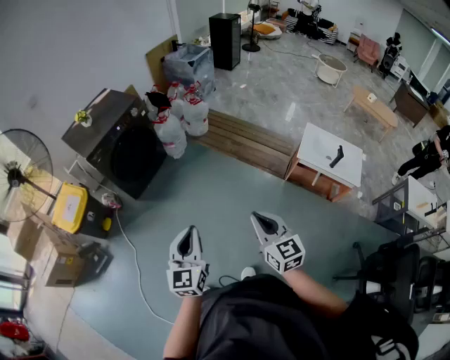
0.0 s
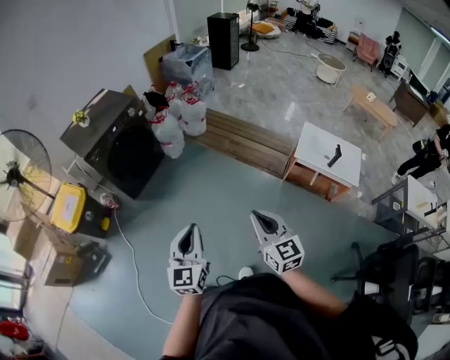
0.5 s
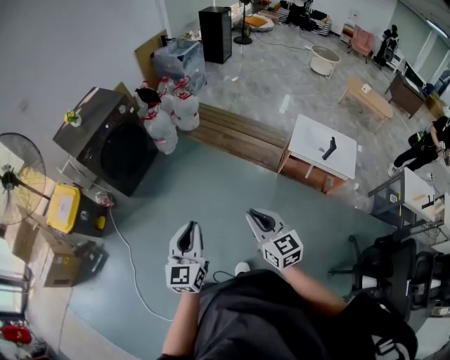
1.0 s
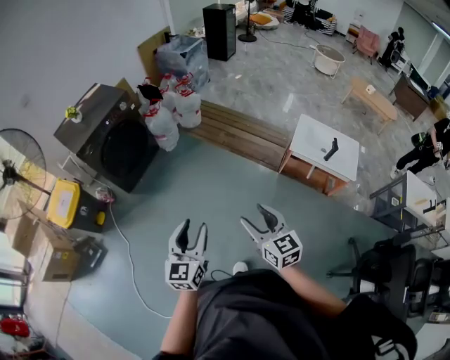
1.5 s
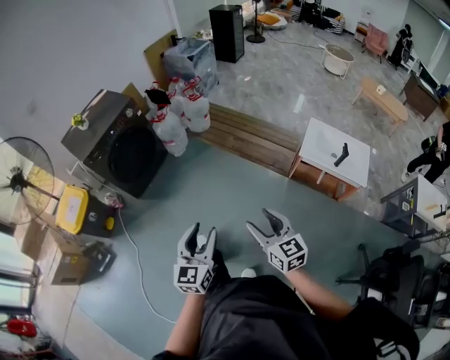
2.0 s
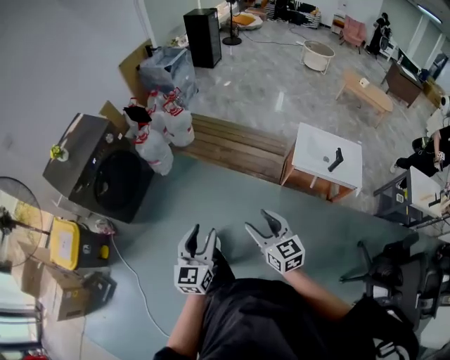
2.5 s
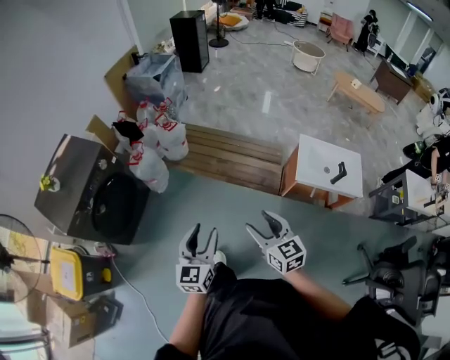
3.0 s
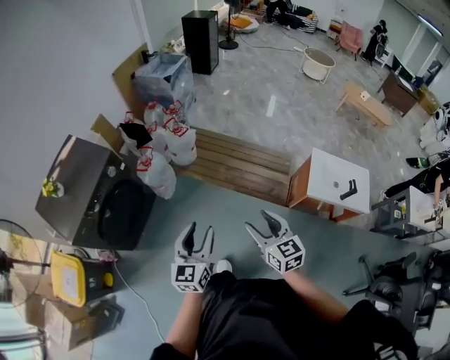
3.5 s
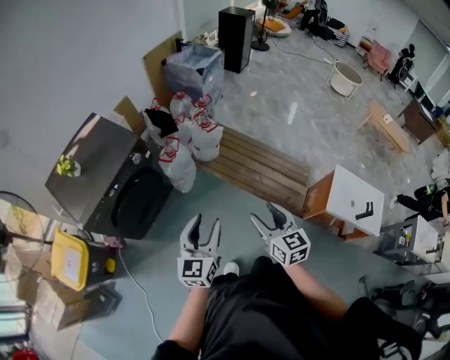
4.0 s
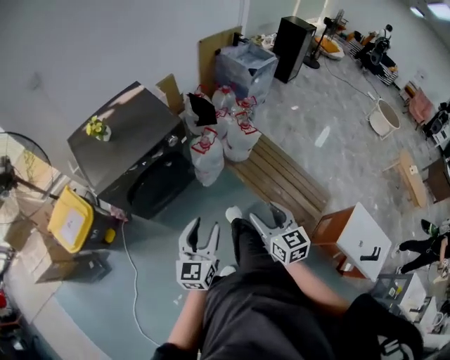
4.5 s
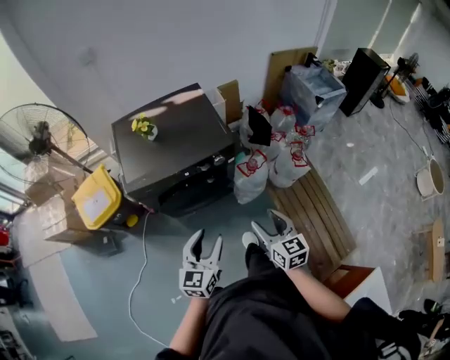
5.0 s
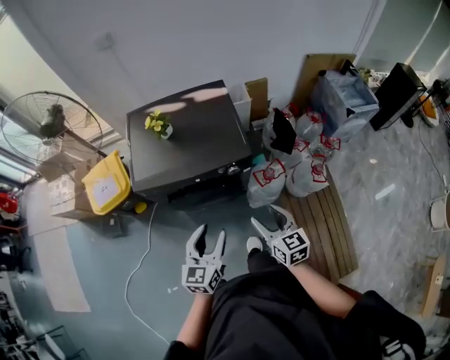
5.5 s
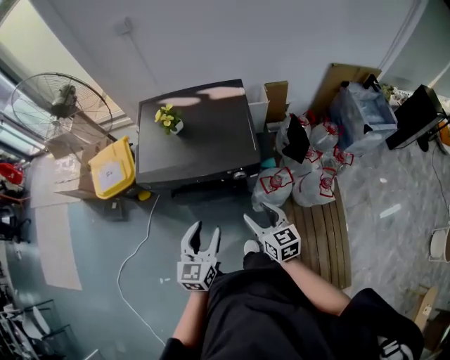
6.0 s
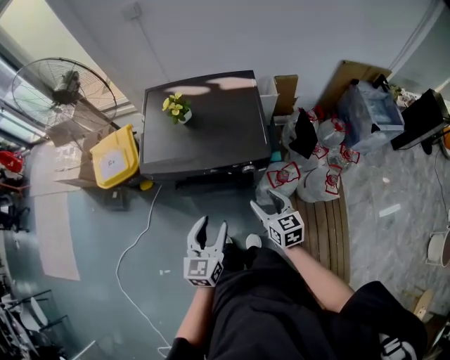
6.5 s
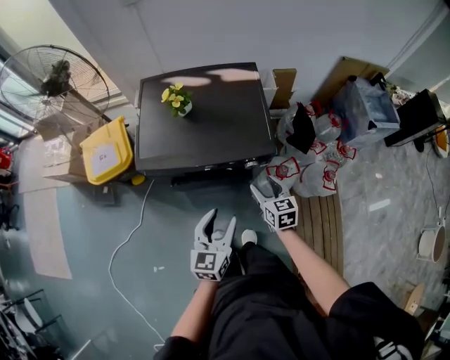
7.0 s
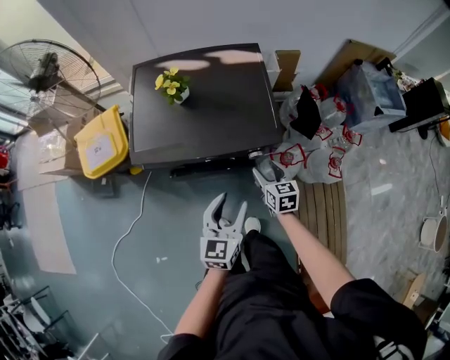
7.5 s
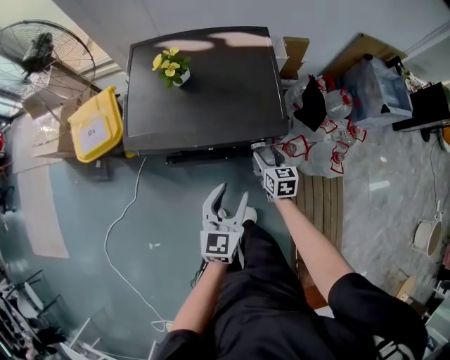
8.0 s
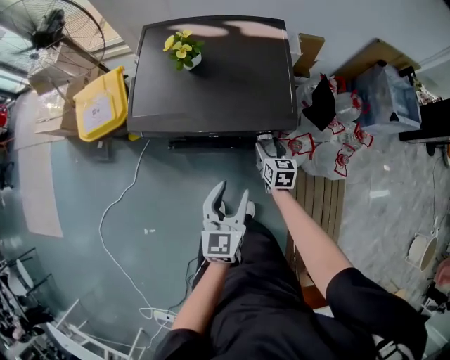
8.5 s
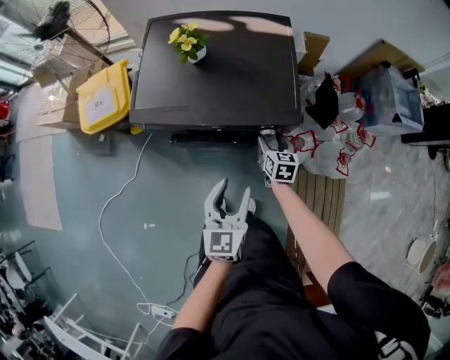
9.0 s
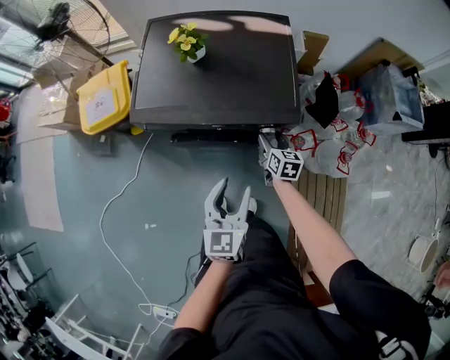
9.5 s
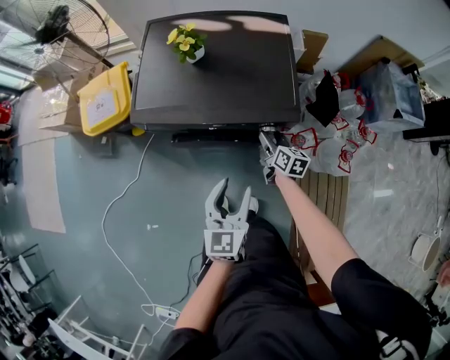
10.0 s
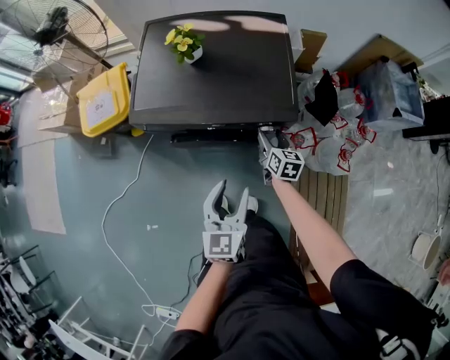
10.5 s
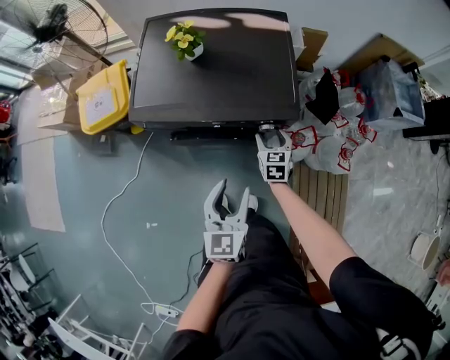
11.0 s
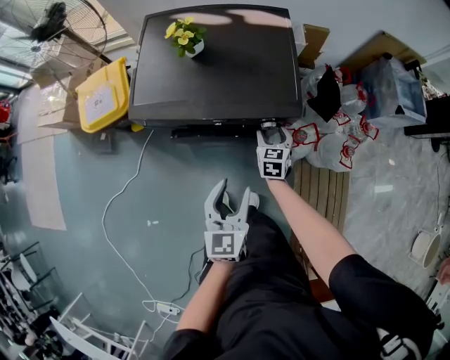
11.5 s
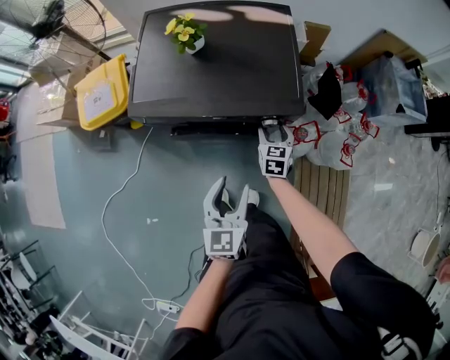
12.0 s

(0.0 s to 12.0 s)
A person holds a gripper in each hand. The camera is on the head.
0.0 s - 2.0 s: Both grippers travel together to the right, approximately 10 cm. The left gripper opens; the right gripper opens its fingers.
2.0 s - 4.0 s: The two grippers travel together, forward and to the left, roughly 50 cm.
4.0 s - 6.0 s: The left gripper shifts by roughly 35 cm, and rotates some 60 degrees; the right gripper ends up approximately 50 cm from where it was, and turns by roughly 60 degrees.
6.0 s - 8.0 s: The left gripper shifts some 10 cm downward and forward; the right gripper goes approximately 25 cm downward and forward.
8.0 s - 10.0 s: The right gripper changes its angle by some 20 degrees.
10.0 s - 12.0 s: The right gripper changes its angle by roughly 30 degrees.

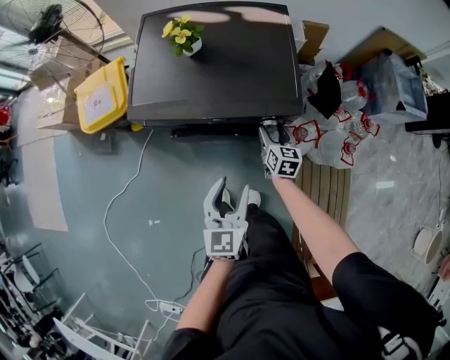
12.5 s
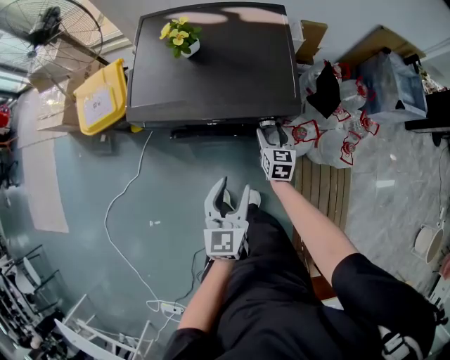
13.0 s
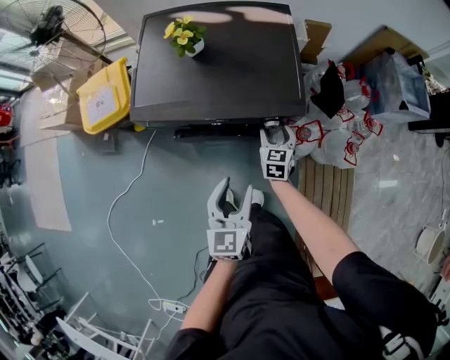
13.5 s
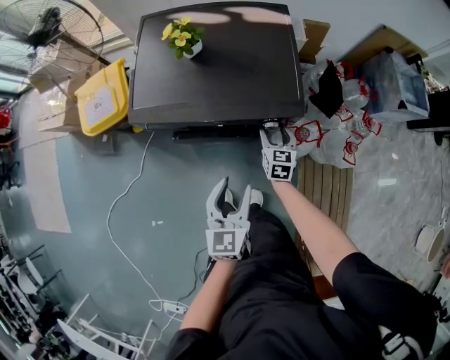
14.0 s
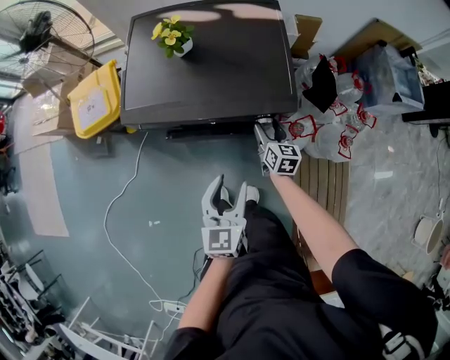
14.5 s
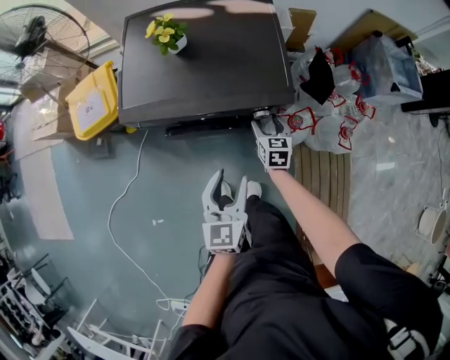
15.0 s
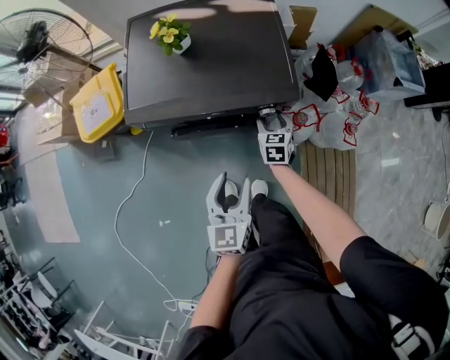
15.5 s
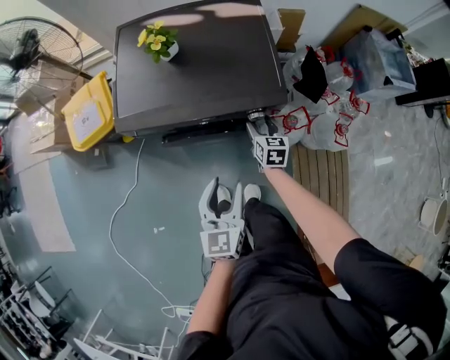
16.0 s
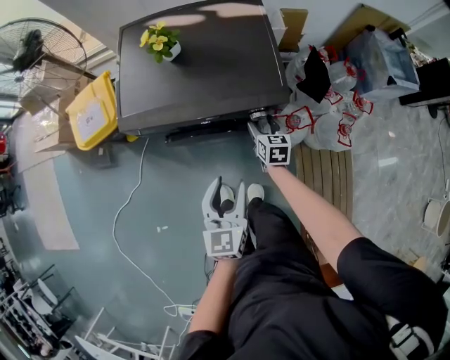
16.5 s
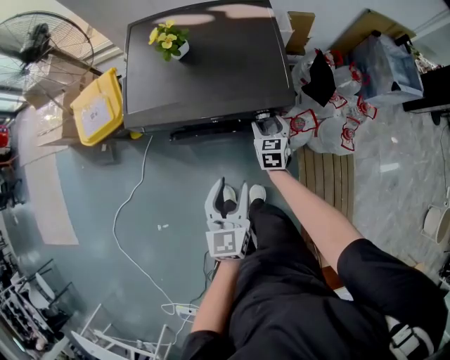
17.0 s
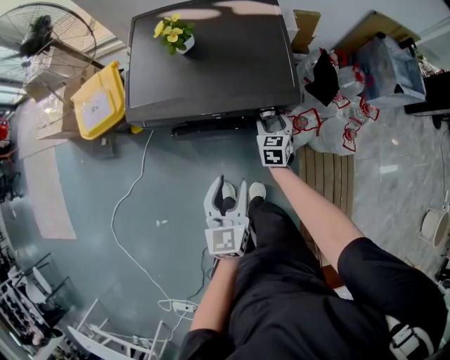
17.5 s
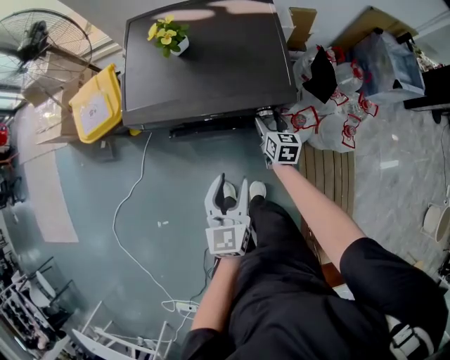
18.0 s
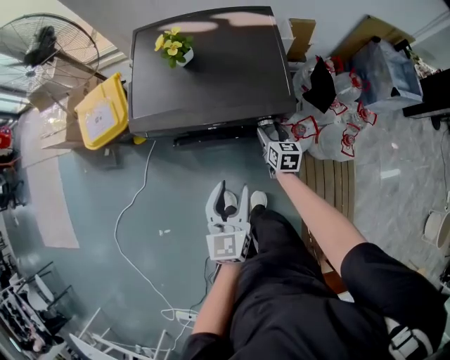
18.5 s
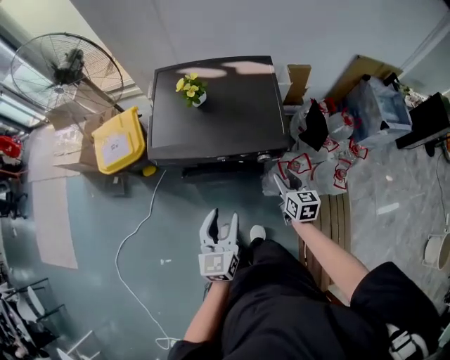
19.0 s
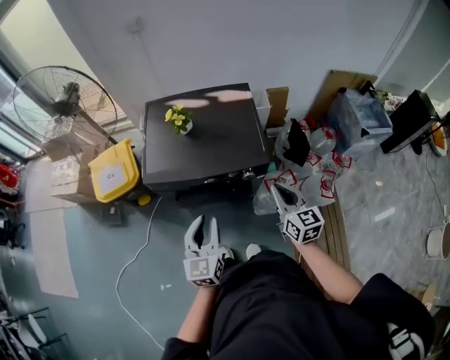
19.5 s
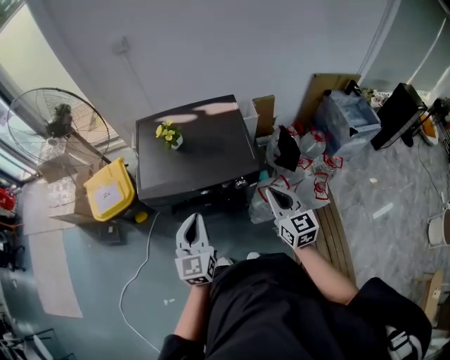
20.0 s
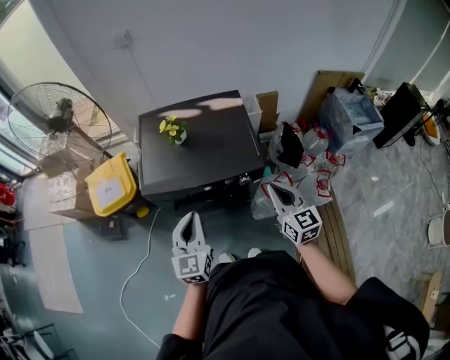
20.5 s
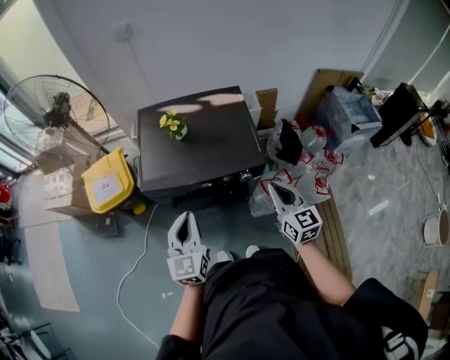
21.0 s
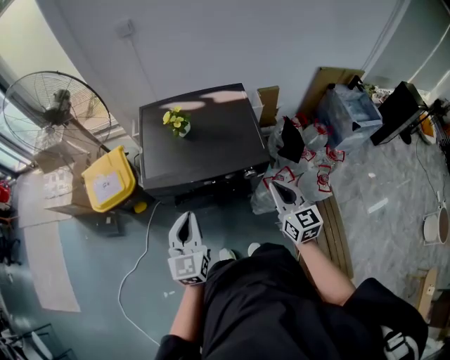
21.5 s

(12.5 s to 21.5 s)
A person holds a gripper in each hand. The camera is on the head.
14.5 s - 17.0 s: The right gripper turns by about 20 degrees.
17.0 s - 19.5 s: The left gripper shifts approximately 15 cm upward and to the left. Meanwhile the right gripper is displaced upward and backward by about 30 cm, swivels about 30 degrees, and closes up.
19.5 s - 21.5 s: The left gripper moves to the left, roughly 10 cm, and closes its fingers.

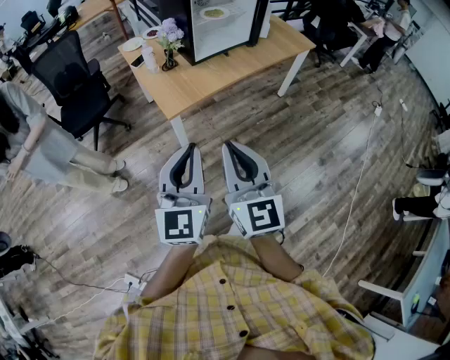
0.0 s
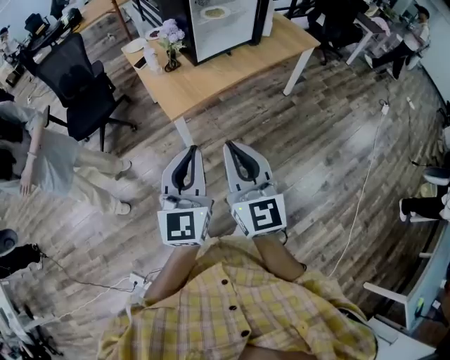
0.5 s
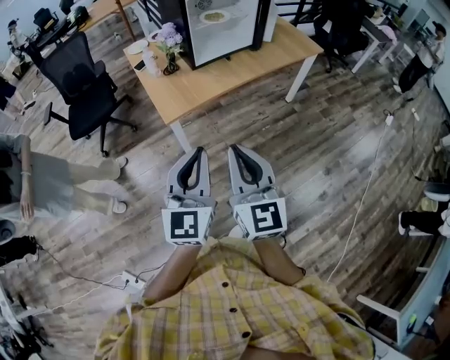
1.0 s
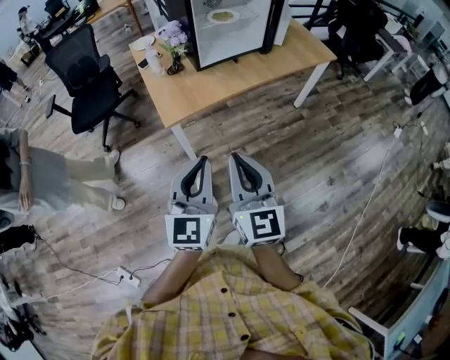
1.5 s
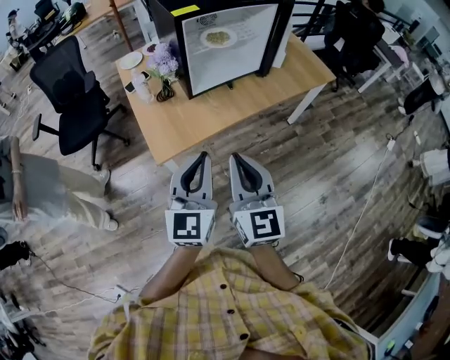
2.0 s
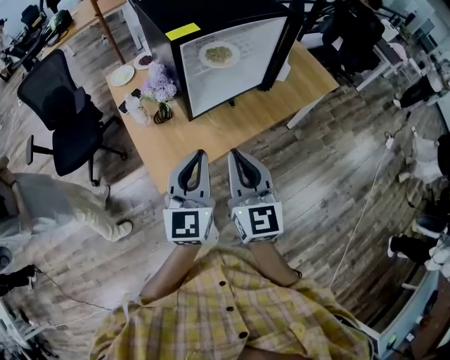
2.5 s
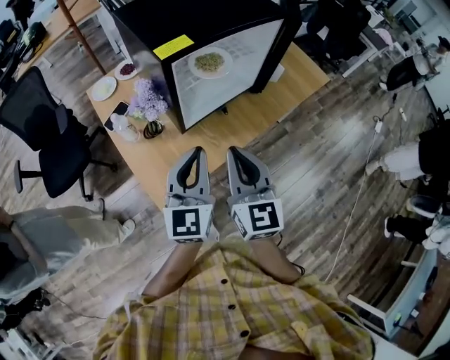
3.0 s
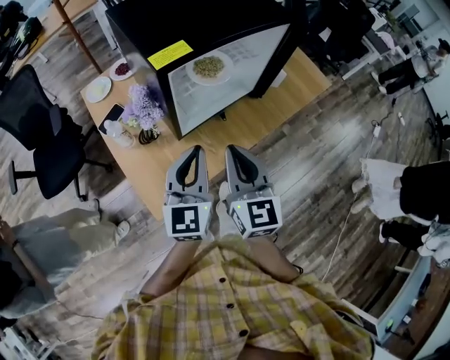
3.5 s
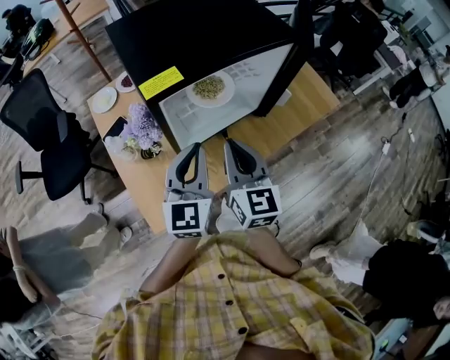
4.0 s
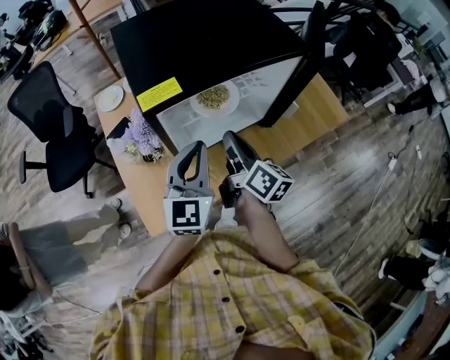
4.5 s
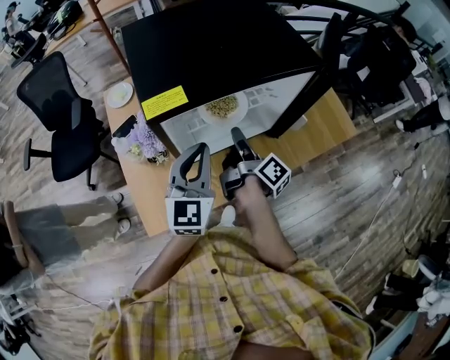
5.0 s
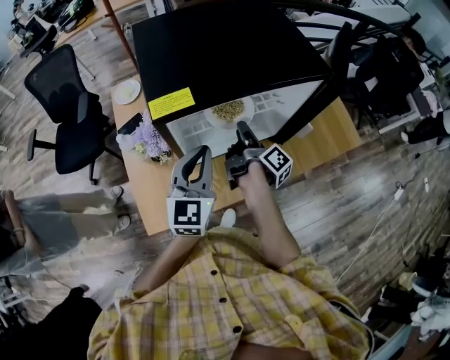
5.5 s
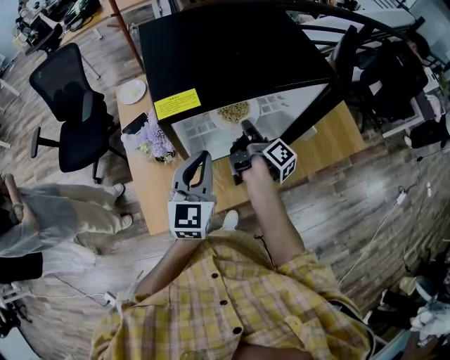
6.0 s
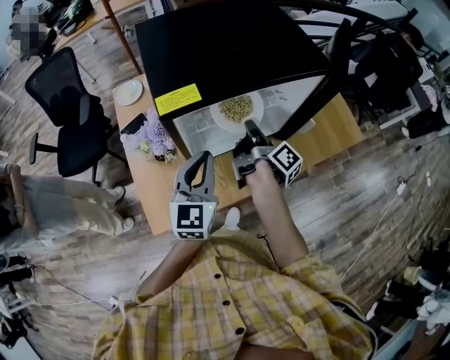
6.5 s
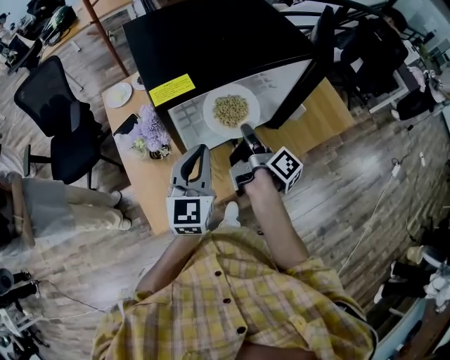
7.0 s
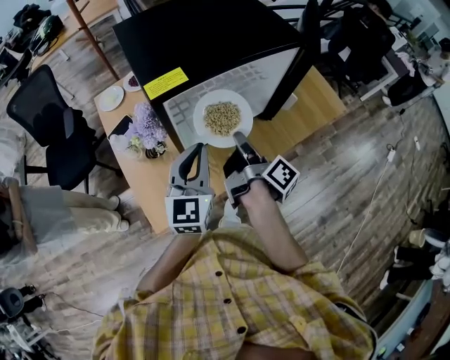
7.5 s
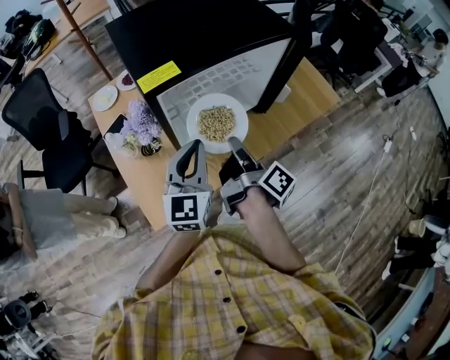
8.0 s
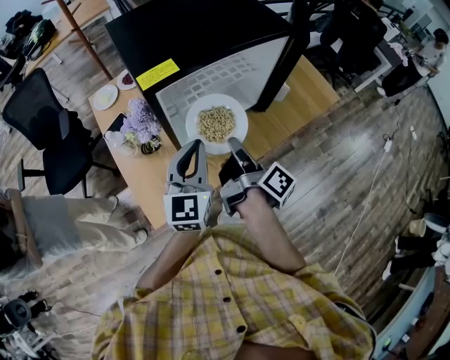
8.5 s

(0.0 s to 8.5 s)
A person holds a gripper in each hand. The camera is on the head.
0.0 s - 2.0 s: Both grippers travel together forward and to the right, roughly 25 cm.
2.0 s - 4.0 s: Both grippers move forward, some 30 cm.
4.0 s - 6.5 s: The right gripper moves forward and downward, roughly 15 cm, rotates around the line of its fingers by about 80 degrees, clockwise from behind, and opens and closes again.
6.5 s - 8.5 s: The right gripper goes roughly 15 cm backward.
